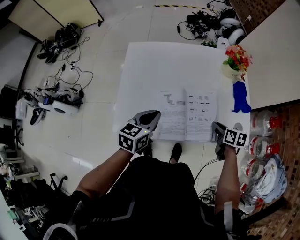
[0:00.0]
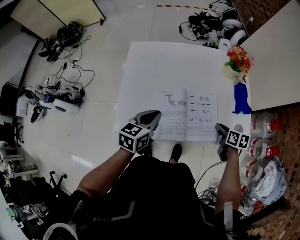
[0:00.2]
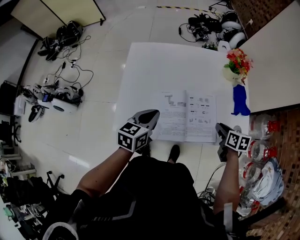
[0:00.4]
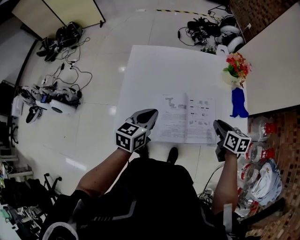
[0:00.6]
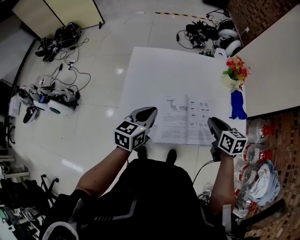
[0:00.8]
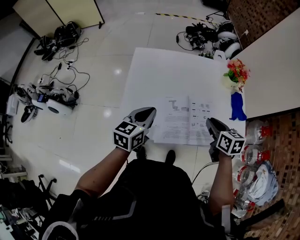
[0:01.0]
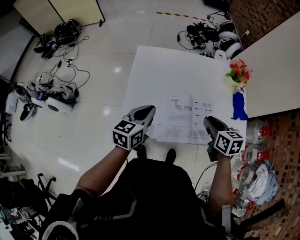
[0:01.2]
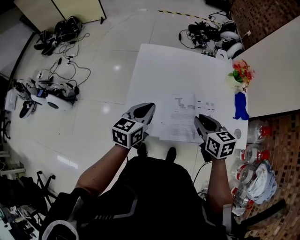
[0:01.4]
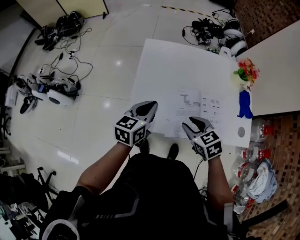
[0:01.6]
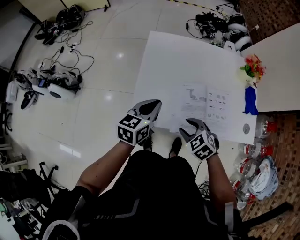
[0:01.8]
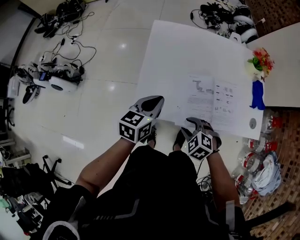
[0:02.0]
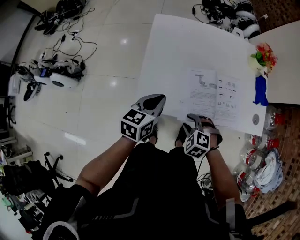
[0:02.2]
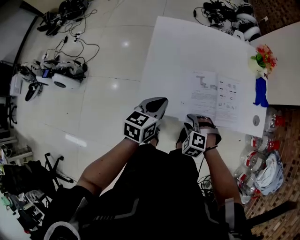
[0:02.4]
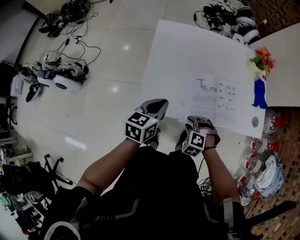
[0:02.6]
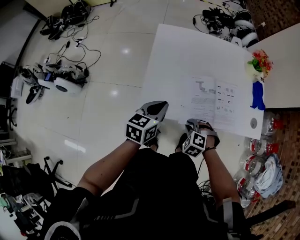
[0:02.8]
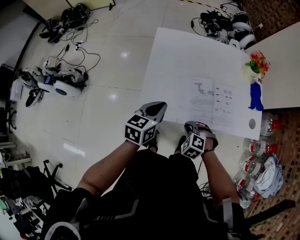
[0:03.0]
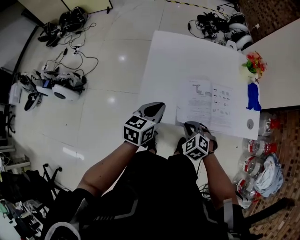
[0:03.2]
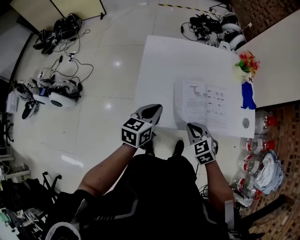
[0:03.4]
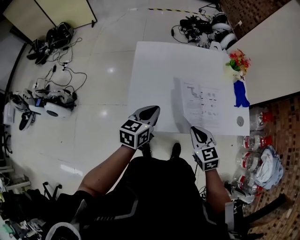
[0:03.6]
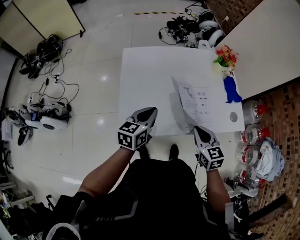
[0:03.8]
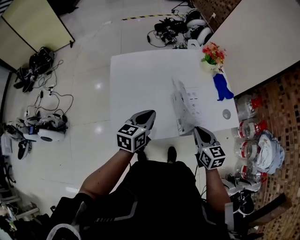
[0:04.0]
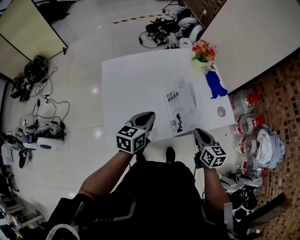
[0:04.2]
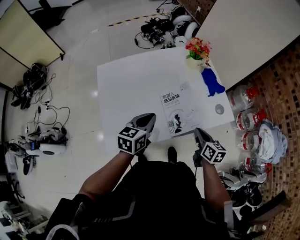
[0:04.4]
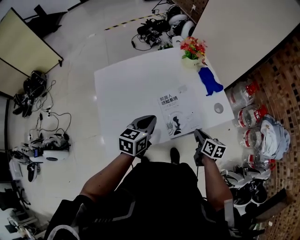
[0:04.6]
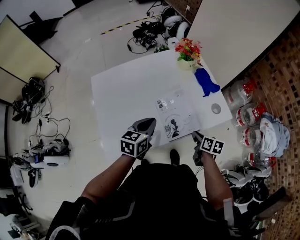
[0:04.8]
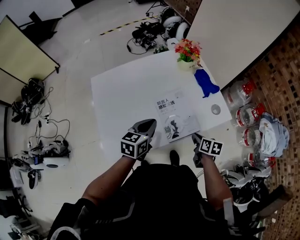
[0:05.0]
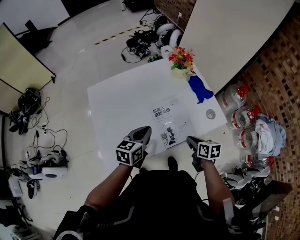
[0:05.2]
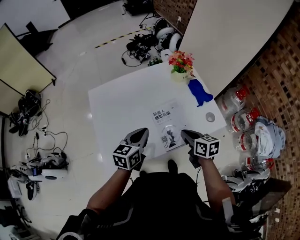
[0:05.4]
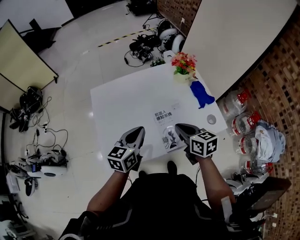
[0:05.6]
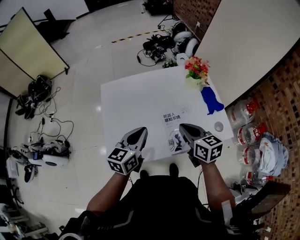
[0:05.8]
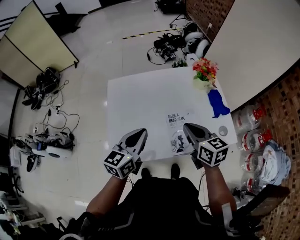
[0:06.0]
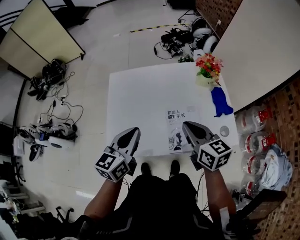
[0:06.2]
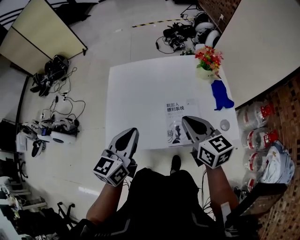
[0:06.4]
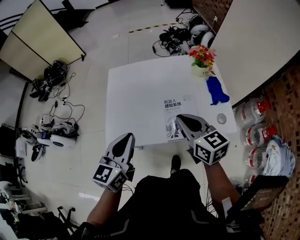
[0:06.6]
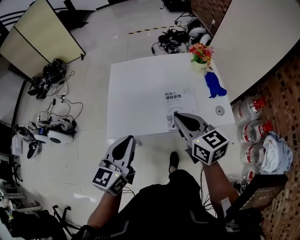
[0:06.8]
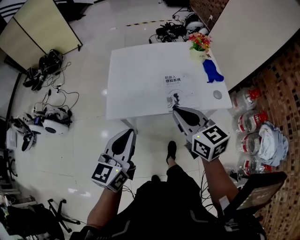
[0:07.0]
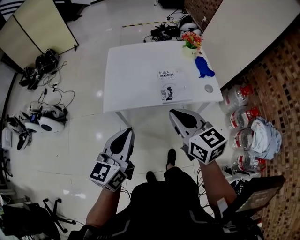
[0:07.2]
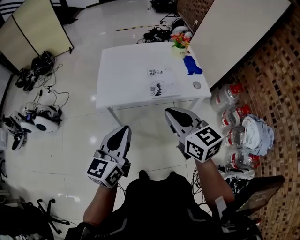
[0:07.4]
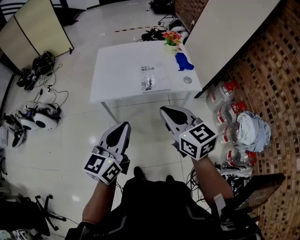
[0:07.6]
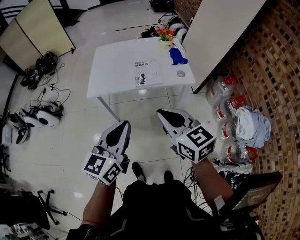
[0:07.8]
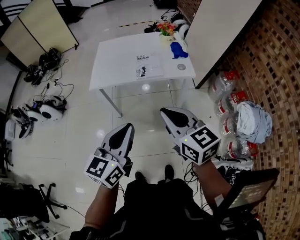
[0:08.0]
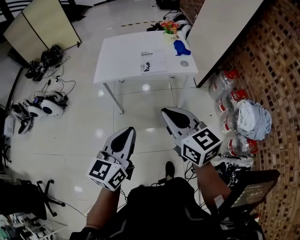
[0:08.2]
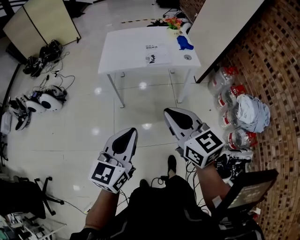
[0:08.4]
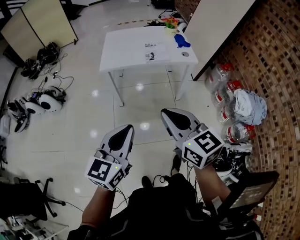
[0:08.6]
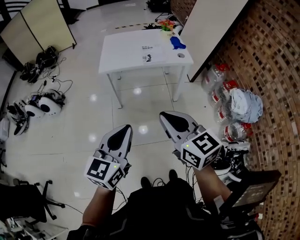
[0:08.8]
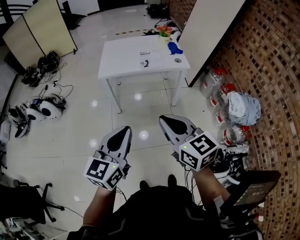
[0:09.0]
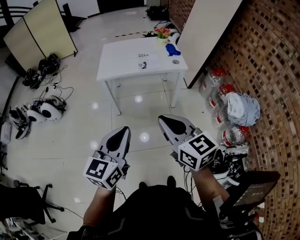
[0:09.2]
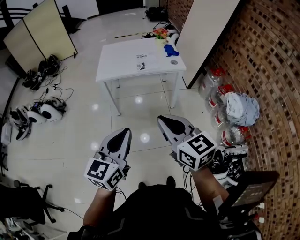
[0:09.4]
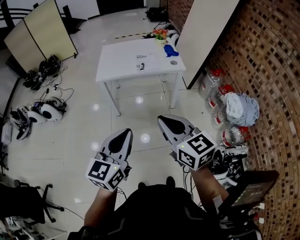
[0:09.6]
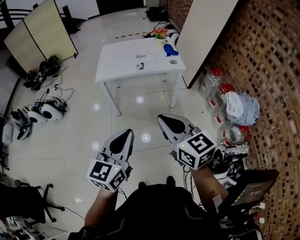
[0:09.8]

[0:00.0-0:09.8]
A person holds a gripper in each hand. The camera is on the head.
0.0 to 1.4 s: The right gripper shifts roughly 25 cm to the left and upward, and rotates about 30 degrees; the left gripper goes approximately 10 cm to the left.
1.4 to 2.8 s: The right gripper heads downward, backward and to the left, covering approximately 25 cm, and rolls counterclockwise, seen from behind, by about 60 degrees. The left gripper is displaced backward and downward by about 10 cm.
2.8 to 4.2 s: The left gripper travels to the right and forward by some 15 cm. The right gripper shifts roughly 25 cm to the right and upward, and rolls clockwise, seen from behind, by about 80 degrees.
4.2 to 5.6 s: The right gripper travels forward, upward and to the left by some 10 cm.
5.6 to 7.0 s: The right gripper travels backward and upward by about 20 cm, and changes its angle by some 20 degrees. The left gripper is displaced backward by some 25 cm, and turns by about 20 degrees.
7.0 to 8.4 s: The pair of grippers is taken backward, approximately 40 cm.
8.4 to 9.8 s: The two grippers go roughly 10 cm backward.

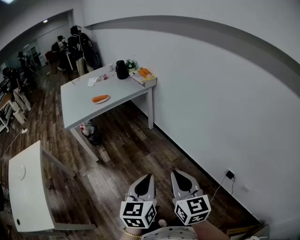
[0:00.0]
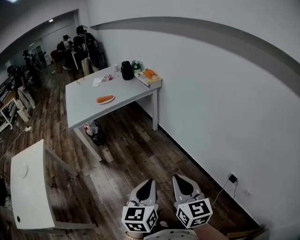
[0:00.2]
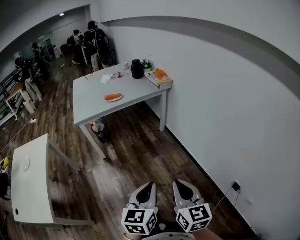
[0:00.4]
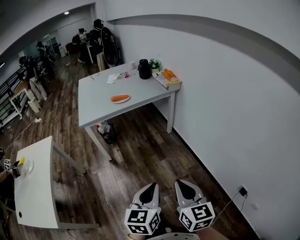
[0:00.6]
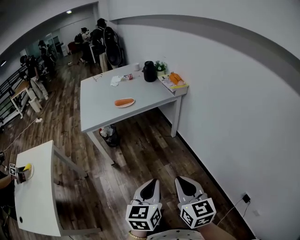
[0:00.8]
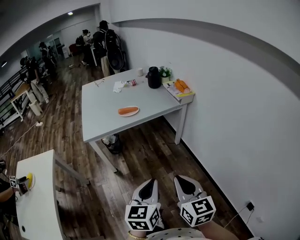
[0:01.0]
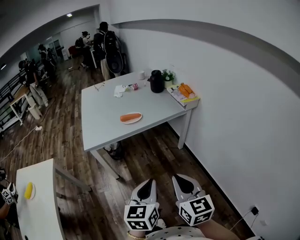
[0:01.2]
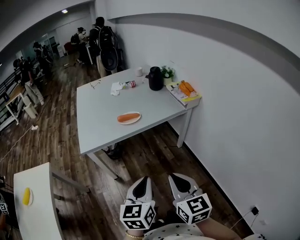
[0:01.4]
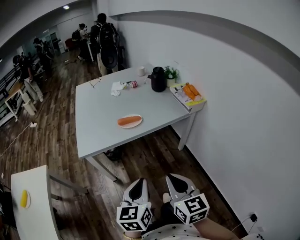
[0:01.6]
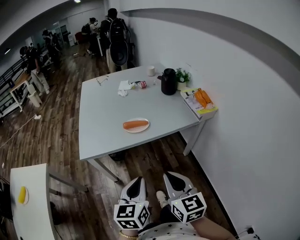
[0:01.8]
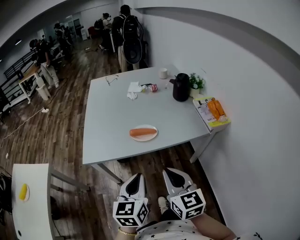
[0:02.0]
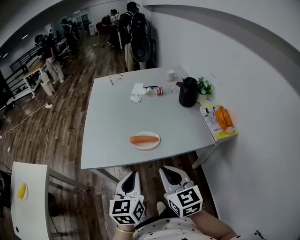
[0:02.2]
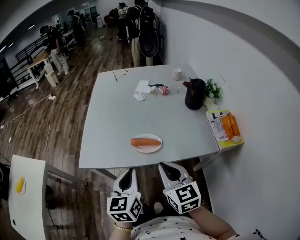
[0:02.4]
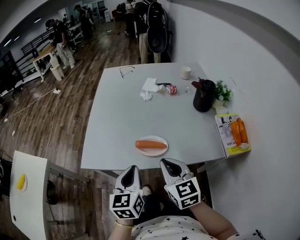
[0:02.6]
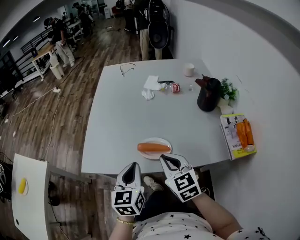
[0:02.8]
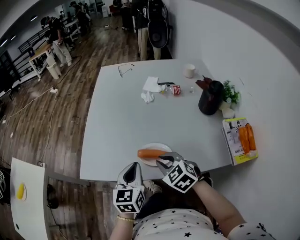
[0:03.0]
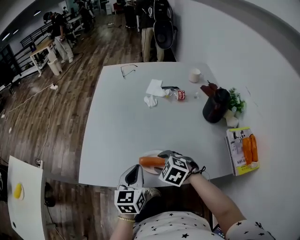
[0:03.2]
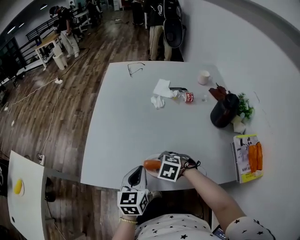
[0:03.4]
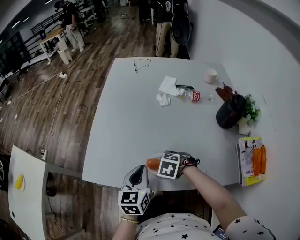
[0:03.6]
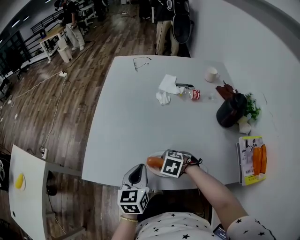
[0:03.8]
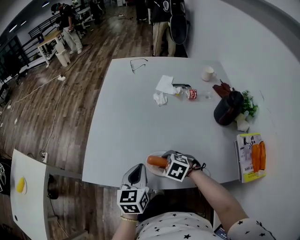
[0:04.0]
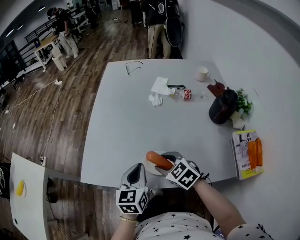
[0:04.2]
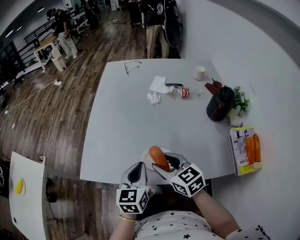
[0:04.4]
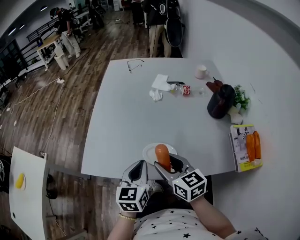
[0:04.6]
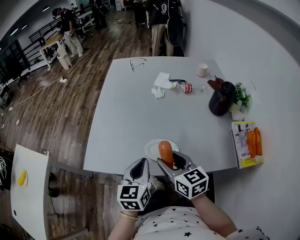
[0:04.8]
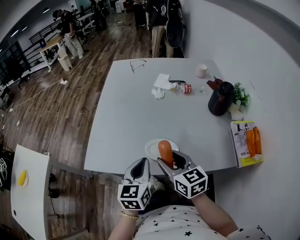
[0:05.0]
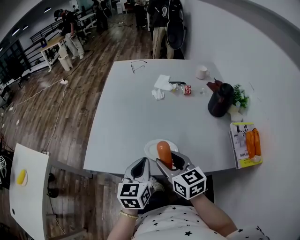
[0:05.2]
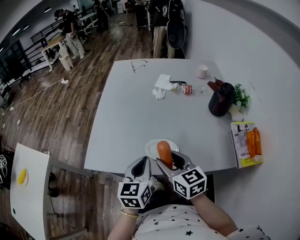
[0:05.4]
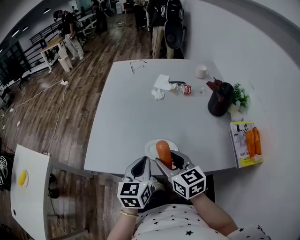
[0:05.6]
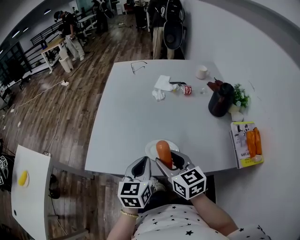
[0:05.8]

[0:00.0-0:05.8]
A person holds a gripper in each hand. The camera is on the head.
0.0 to 1.4 s: The two grippers go some 40 cm forward and to the left.
1.4 to 2.8 s: Both grippers are carried some 40 cm. The right gripper swivels some 40 degrees; the left gripper rotates approximately 30 degrees.
2.8 to 4.4 s: The left gripper moves some 10 cm. The right gripper moves some 20 cm downward and comes back, and opens.
4.4 to 5.8 s: The grippers stay close to where they were, moving slightly.

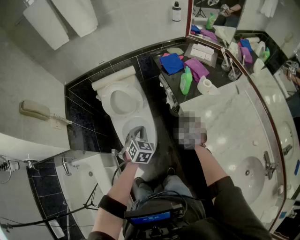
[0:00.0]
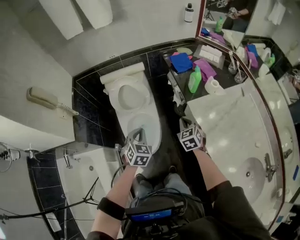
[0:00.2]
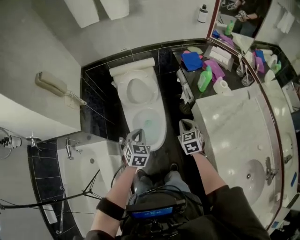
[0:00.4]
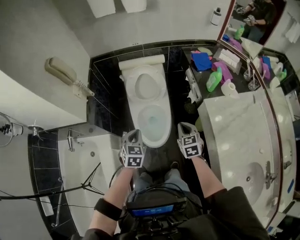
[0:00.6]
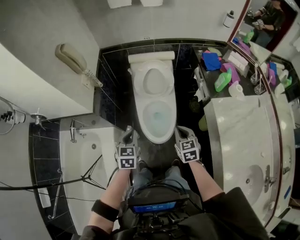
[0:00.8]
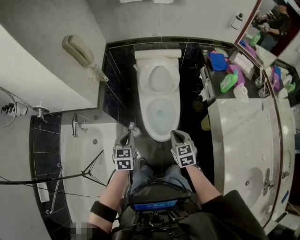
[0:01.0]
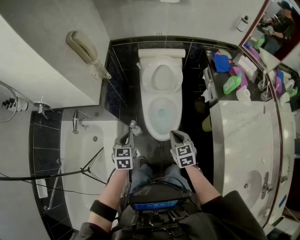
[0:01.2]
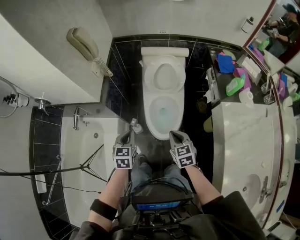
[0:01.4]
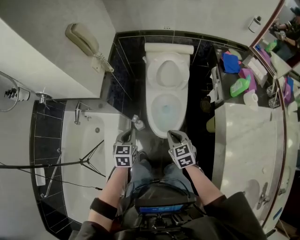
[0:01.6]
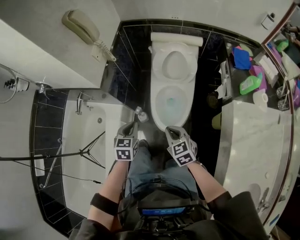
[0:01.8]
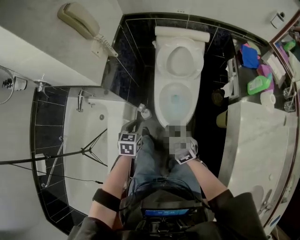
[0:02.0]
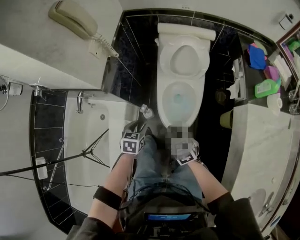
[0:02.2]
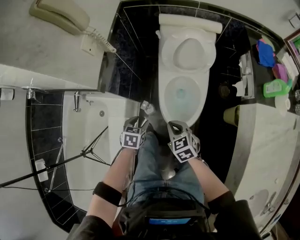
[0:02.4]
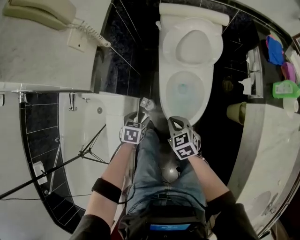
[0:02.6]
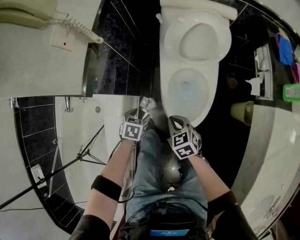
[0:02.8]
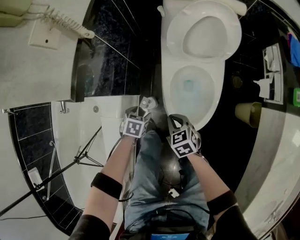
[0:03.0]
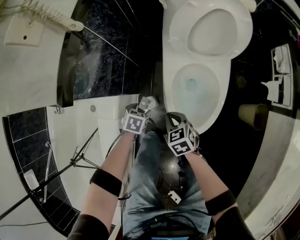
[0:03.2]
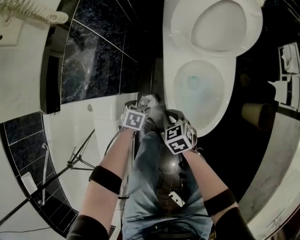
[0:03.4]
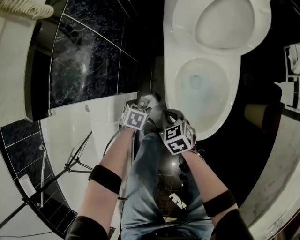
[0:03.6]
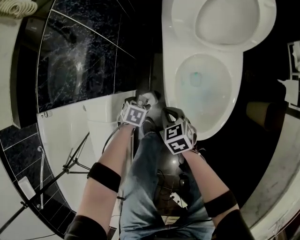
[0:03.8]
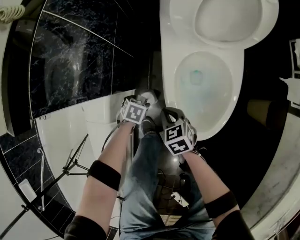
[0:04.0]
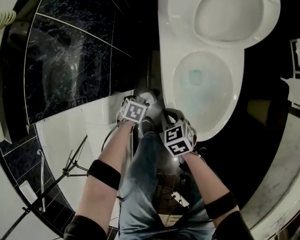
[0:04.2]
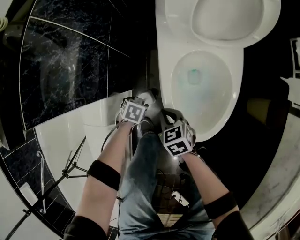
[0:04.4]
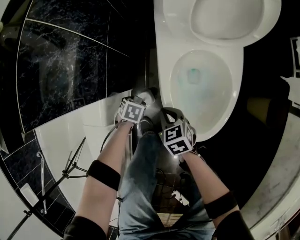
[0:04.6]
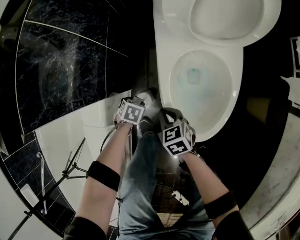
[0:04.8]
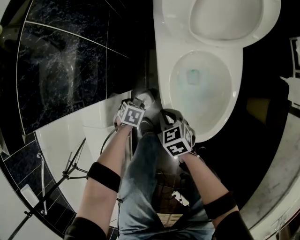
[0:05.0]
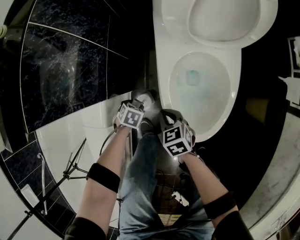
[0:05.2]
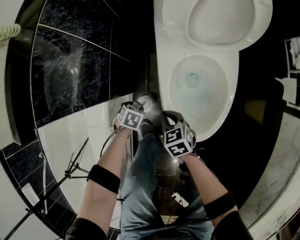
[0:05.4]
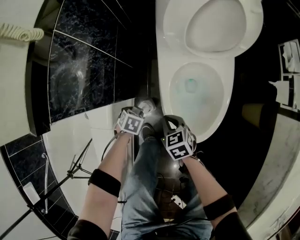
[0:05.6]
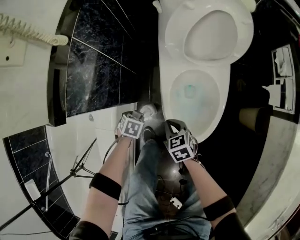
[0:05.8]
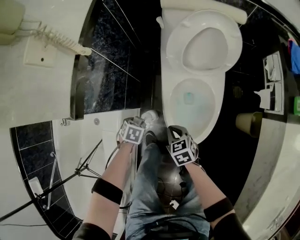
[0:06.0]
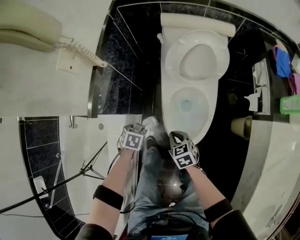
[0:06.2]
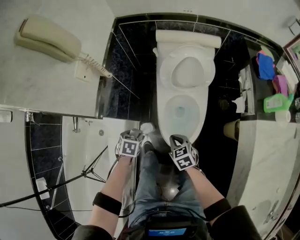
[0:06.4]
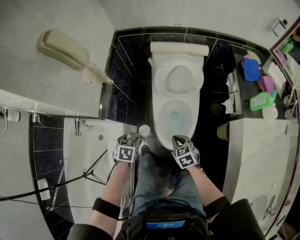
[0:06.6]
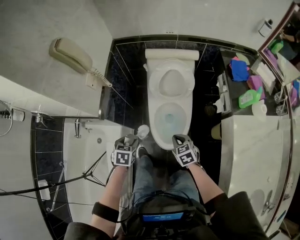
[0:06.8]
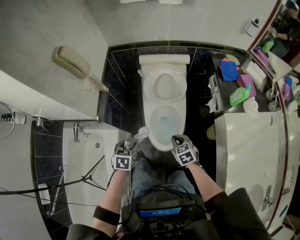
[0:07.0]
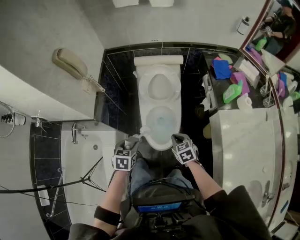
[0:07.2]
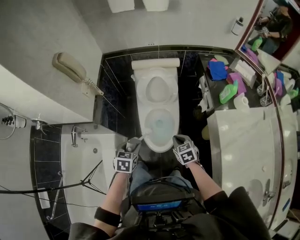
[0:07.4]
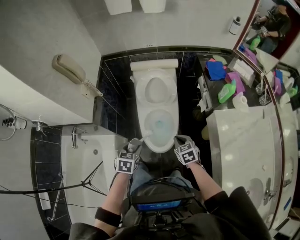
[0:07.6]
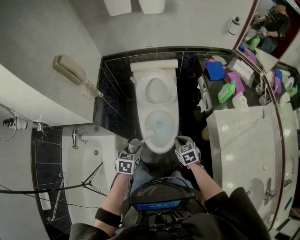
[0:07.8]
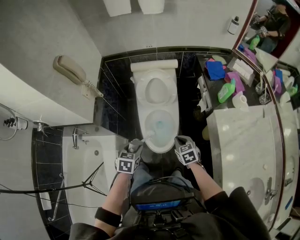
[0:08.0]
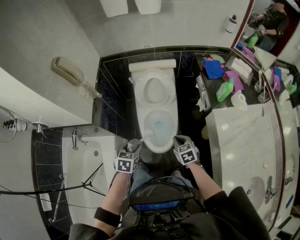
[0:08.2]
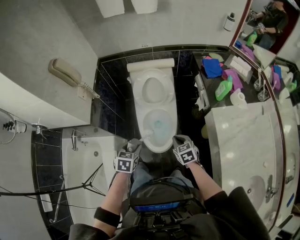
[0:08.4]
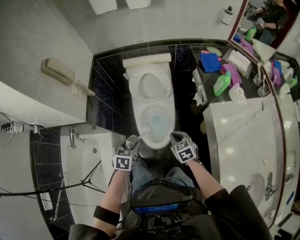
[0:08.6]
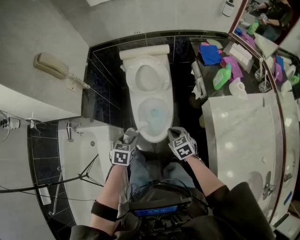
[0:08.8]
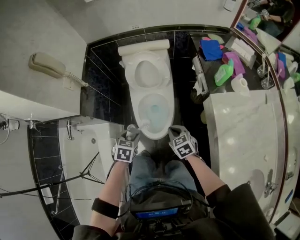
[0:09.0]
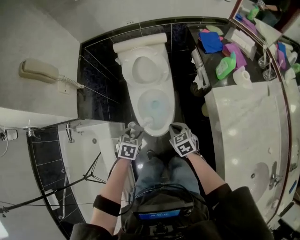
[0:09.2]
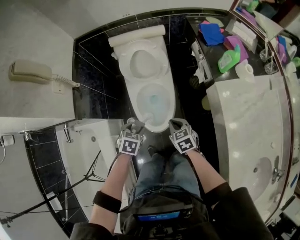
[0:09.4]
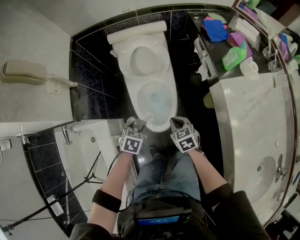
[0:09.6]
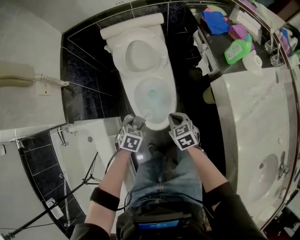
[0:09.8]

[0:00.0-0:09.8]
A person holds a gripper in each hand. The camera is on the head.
0.0 to 1.4 s: The right gripper moves roughly 35 cm, and rotates approximately 30 degrees, while the left gripper moves some 35 cm, and swivels some 40 degrees.
1.4 to 2.8 s: The right gripper heads downward and forward, covering roughly 30 cm. Meanwhile the left gripper shifts approximately 35 cm downward, changes its angle by roughly 30 degrees, and opens up.
2.8 to 4.2 s: The grippers both shift downward by some 25 cm.
4.2 to 5.6 s: The left gripper goes roughly 5 cm upward.
5.6 to 7.0 s: Both grippers move upward, approximately 40 cm. The left gripper changes its angle by roughly 30 degrees.
7.0 to 8.4 s: Both grippers move to the right, some 5 cm.
8.4 to 9.8 s: Both grippers move downward, about 15 cm. The left gripper turns by approximately 20 degrees.
